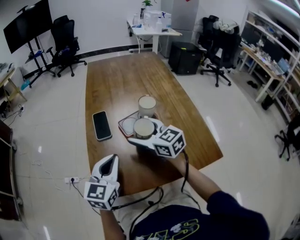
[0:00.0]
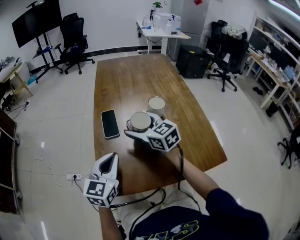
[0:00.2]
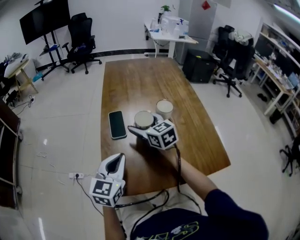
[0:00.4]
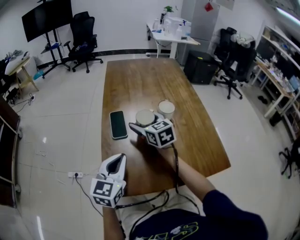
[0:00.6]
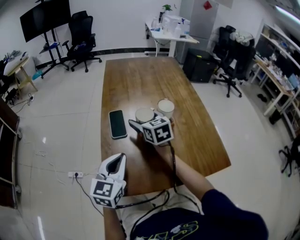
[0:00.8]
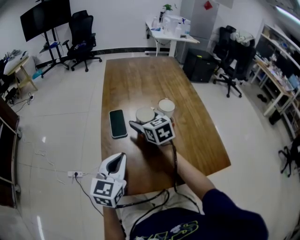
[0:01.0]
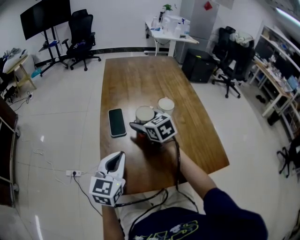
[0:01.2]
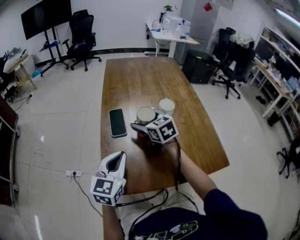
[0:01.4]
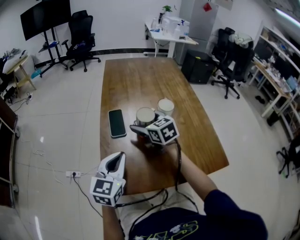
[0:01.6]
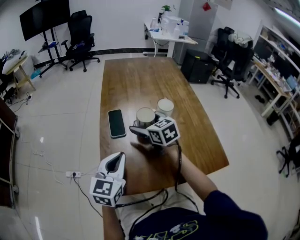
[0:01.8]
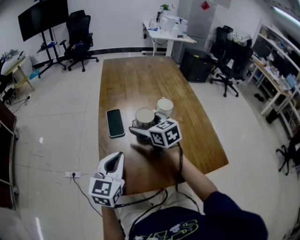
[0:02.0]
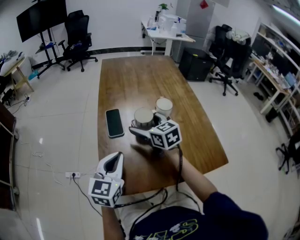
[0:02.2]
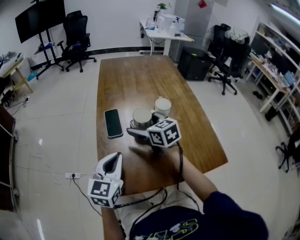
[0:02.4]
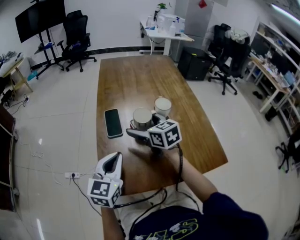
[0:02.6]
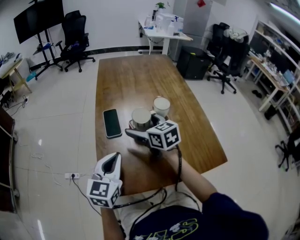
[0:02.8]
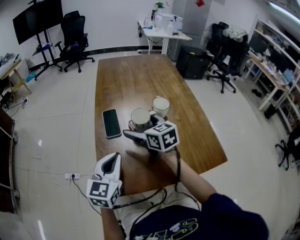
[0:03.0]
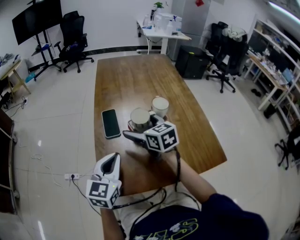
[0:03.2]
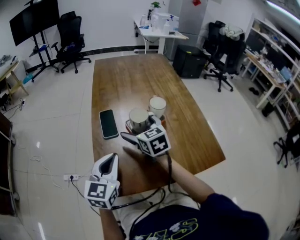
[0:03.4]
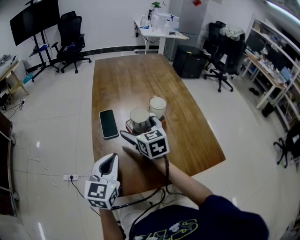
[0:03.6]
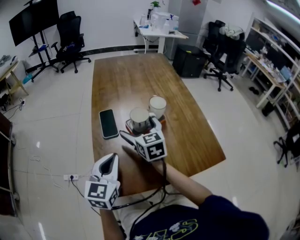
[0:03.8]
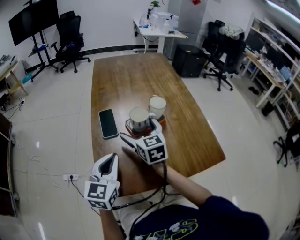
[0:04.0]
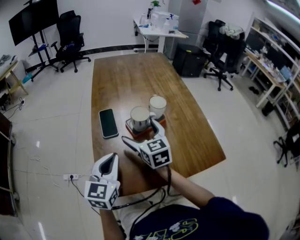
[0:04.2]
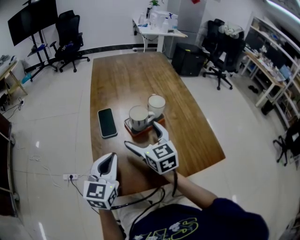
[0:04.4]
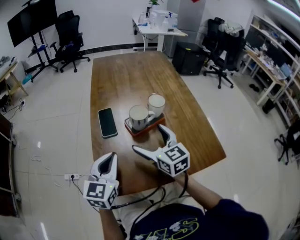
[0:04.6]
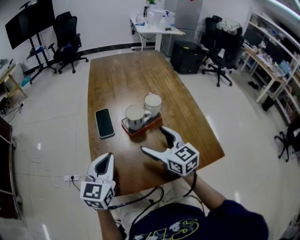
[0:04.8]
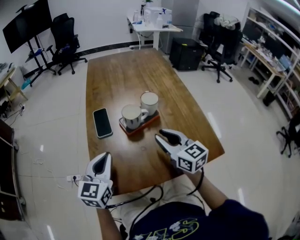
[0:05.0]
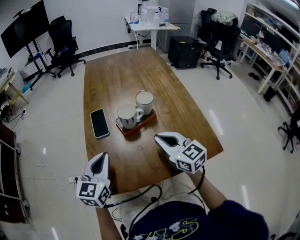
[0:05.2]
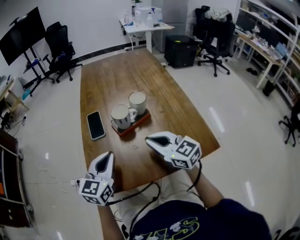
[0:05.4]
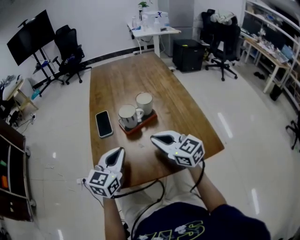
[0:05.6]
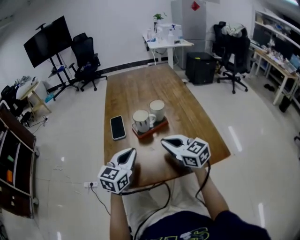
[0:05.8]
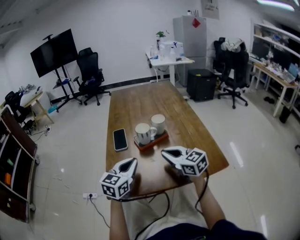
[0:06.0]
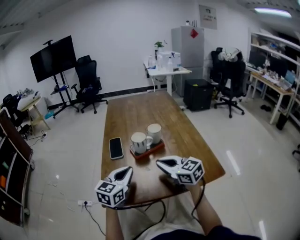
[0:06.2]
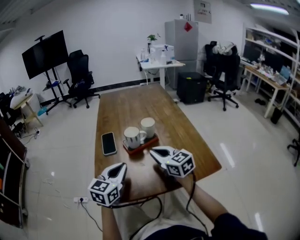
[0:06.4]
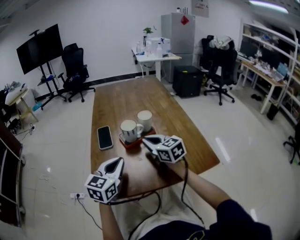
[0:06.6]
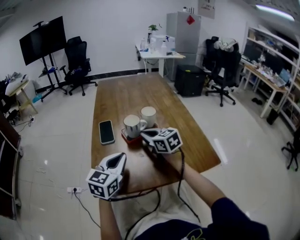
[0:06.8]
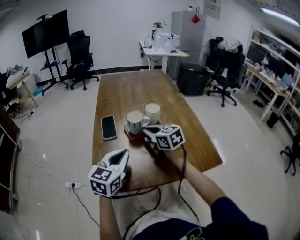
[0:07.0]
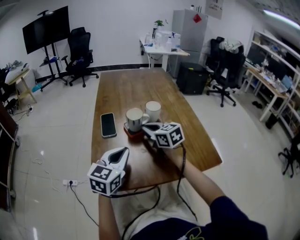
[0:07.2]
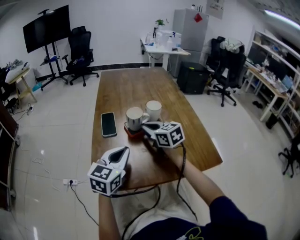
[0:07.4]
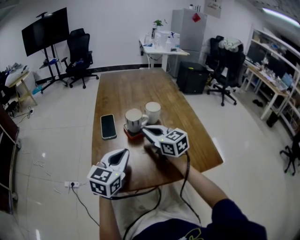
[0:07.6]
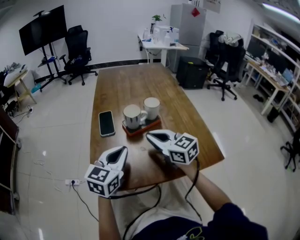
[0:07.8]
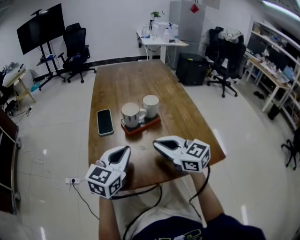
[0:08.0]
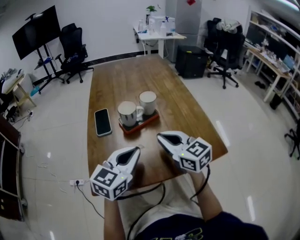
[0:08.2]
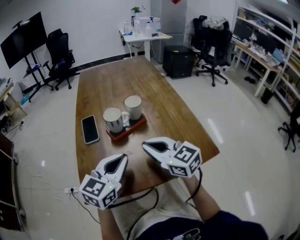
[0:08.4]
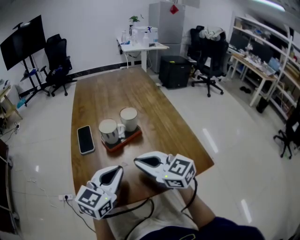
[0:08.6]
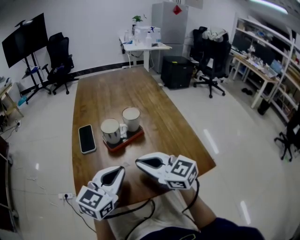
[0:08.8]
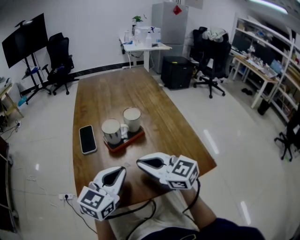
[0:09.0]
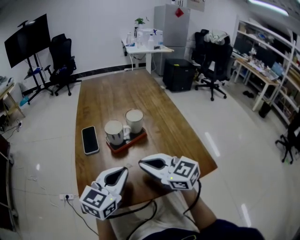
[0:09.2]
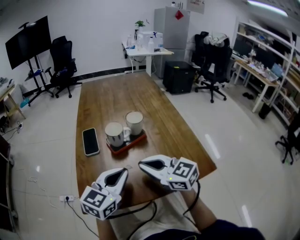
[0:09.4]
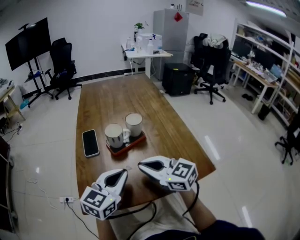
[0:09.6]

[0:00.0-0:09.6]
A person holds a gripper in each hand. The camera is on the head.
0.0 to 1.6 s: The right gripper moves forward, about 5 cm.
1.6 to 3.2 s: The grippers stay close to where they were, moving slightly.
3.2 to 4.8 s: The right gripper goes some 10 cm backward and to the right.
4.8 to 6.4 s: The right gripper closes up. Meanwhile the left gripper heads to the right, covering some 5 cm.
6.4 to 8.0 s: The right gripper moves backward, approximately 5 cm.
8.0 to 9.6 s: There are only small adjustments of the grippers.

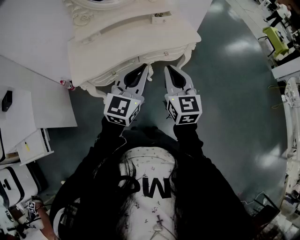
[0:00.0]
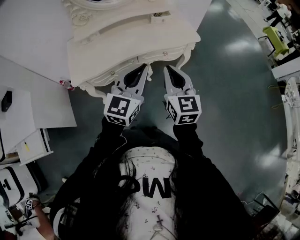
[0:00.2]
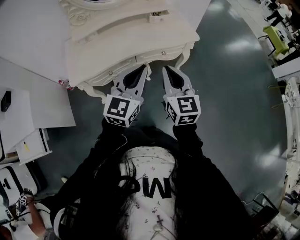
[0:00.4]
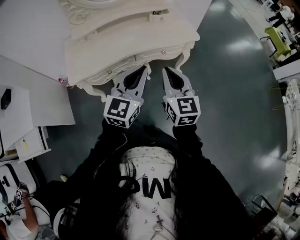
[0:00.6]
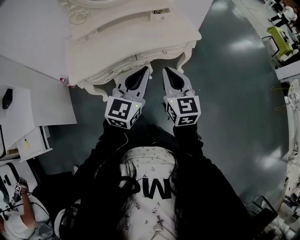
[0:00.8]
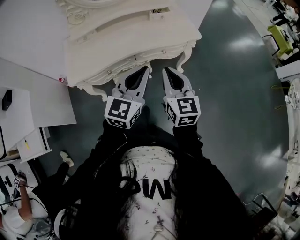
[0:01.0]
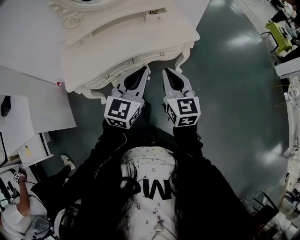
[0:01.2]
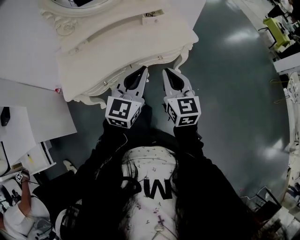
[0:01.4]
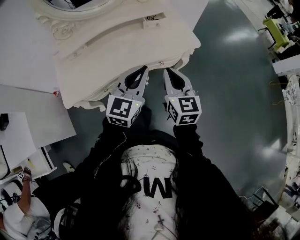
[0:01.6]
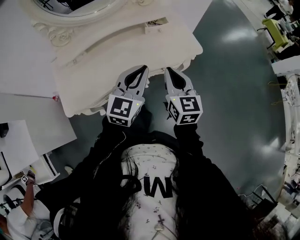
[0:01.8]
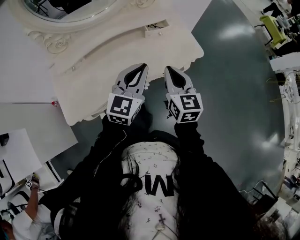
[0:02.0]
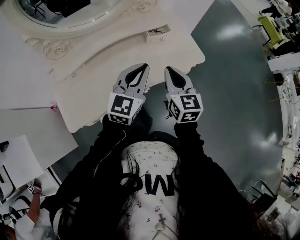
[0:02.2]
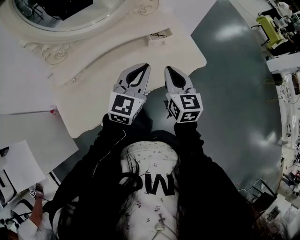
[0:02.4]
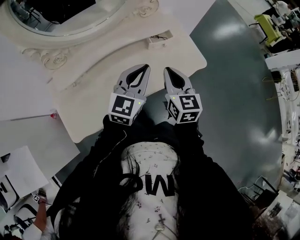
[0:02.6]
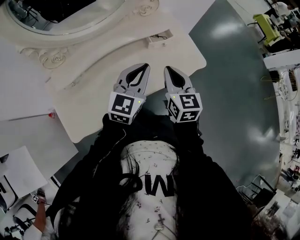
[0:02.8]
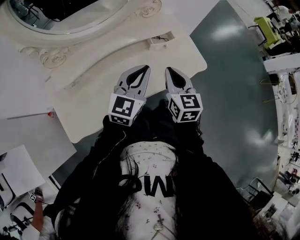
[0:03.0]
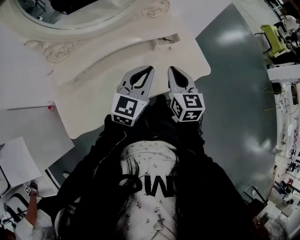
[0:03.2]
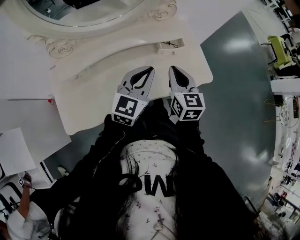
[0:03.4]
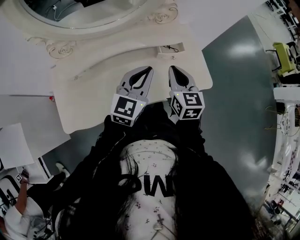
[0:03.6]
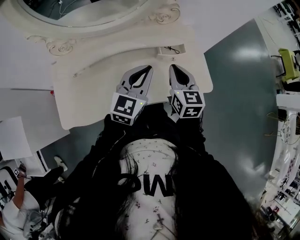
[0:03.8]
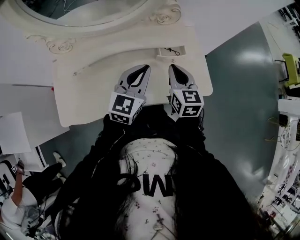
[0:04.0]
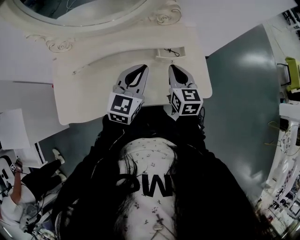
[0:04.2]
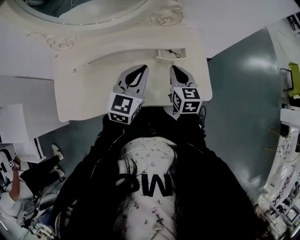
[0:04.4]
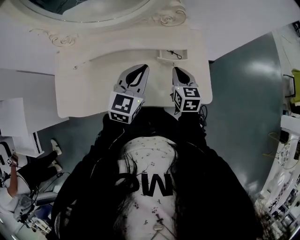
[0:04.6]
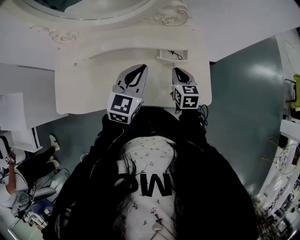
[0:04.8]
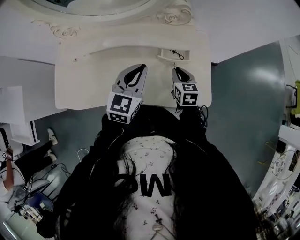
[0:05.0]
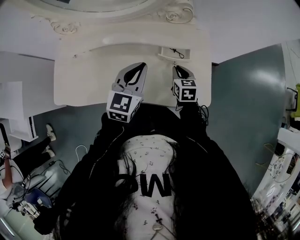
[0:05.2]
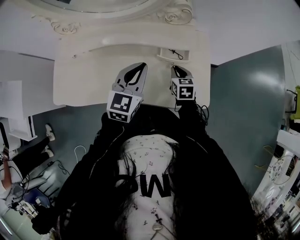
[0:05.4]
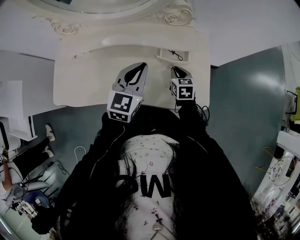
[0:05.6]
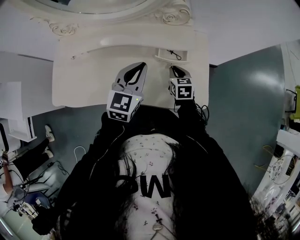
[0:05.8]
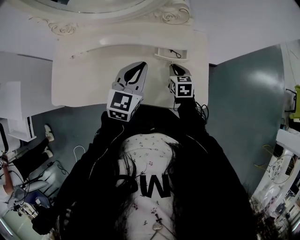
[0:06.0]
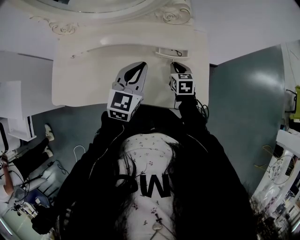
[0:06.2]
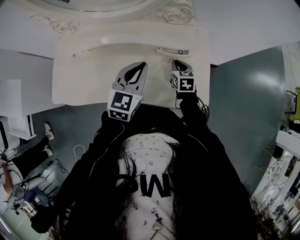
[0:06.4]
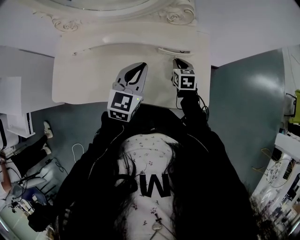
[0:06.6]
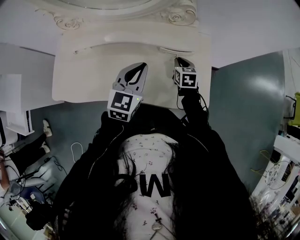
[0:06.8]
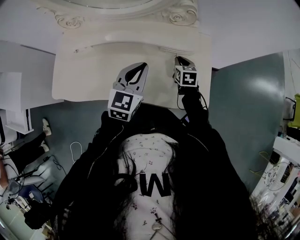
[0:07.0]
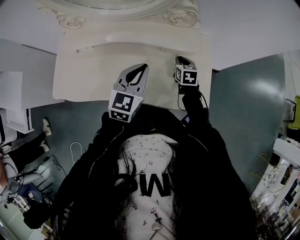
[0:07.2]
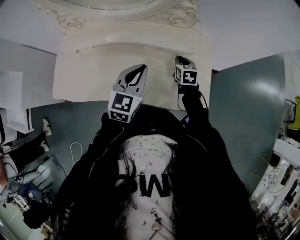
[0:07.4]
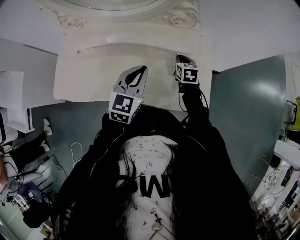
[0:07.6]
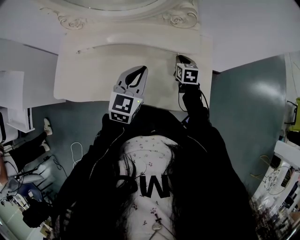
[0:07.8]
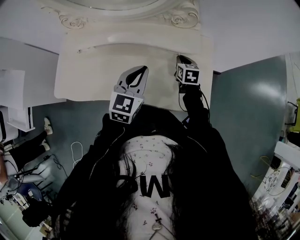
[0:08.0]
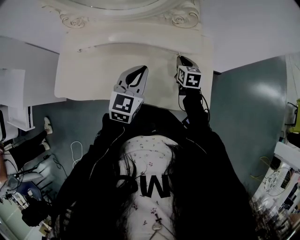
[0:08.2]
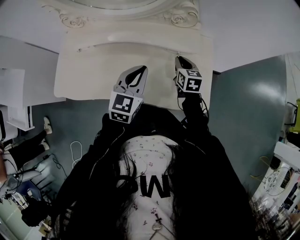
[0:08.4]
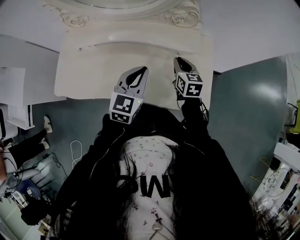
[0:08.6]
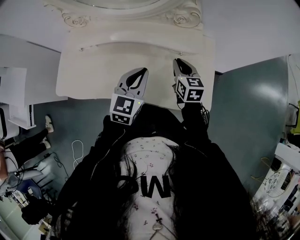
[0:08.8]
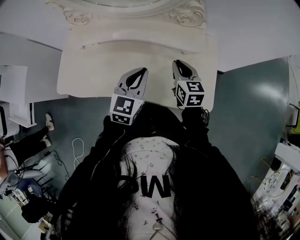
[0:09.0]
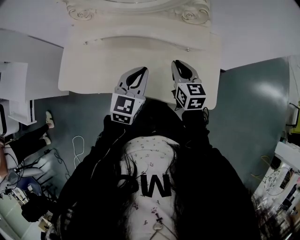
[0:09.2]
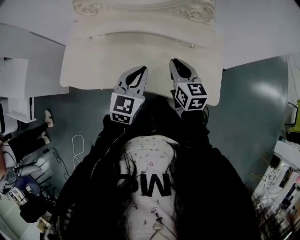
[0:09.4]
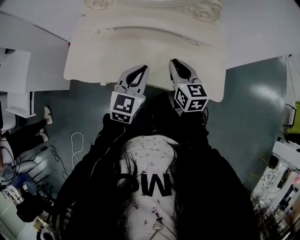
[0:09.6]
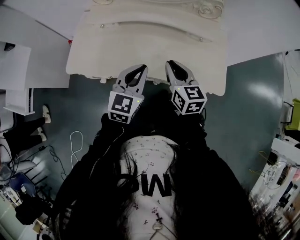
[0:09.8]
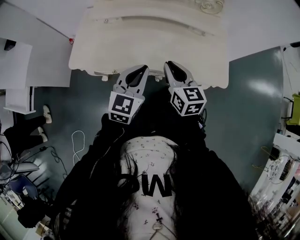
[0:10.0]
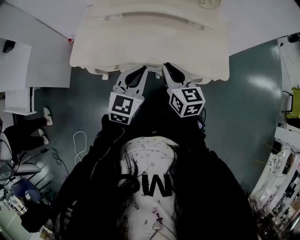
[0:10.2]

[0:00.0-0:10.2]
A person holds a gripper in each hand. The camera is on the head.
0.0 to 1.4 s: The left gripper travels forward by some 10 cm, while the right gripper goes approximately 10 cm forward and downward.
1.4 to 3.0 s: The grippers both shift forward and to the left by roughly 25 cm.
3.0 to 4.4 s: The left gripper is displaced forward by roughly 10 cm, and rotates some 20 degrees, while the right gripper is displaced forward and downward by approximately 15 cm, and rotates some 20 degrees.
4.4 to 5.8 s: The right gripper heads downward, covering some 15 cm.
5.8 to 7.2 s: The right gripper moves forward, roughly 5 cm.
7.2 to 8.8 s: The right gripper travels upward by about 10 cm.
8.8 to 10.2 s: Both grippers travel together backward and to the left, some 25 cm.

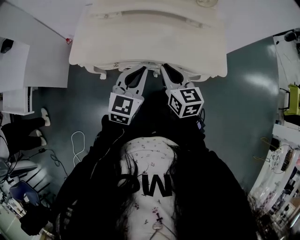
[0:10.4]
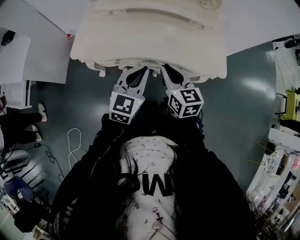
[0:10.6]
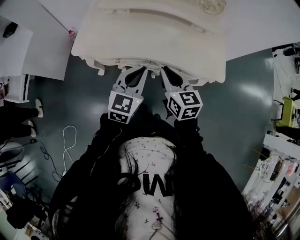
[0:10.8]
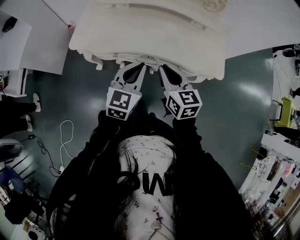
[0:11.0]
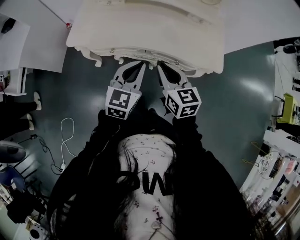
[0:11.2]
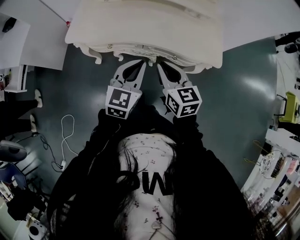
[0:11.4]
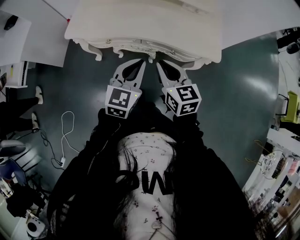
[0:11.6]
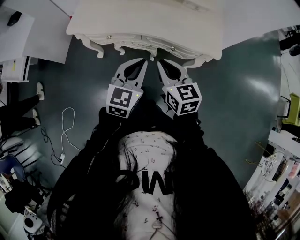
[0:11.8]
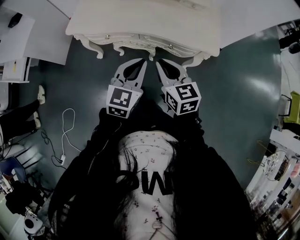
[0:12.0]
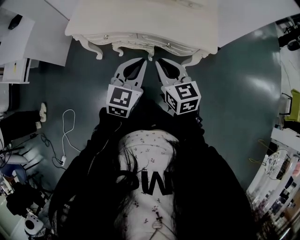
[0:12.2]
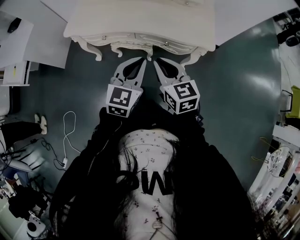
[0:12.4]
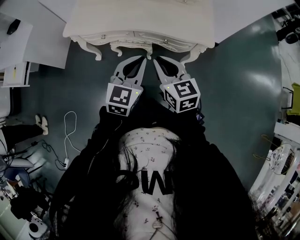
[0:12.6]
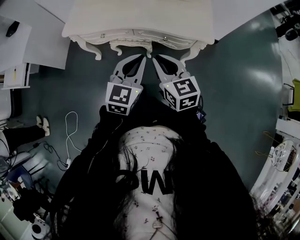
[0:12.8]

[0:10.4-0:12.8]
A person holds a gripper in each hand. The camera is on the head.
10.4 to 11.6 s: The grippers both shift backward by roughly 10 cm.
11.6 to 12.8 s: Both grippers travel together backward, approximately 5 cm.

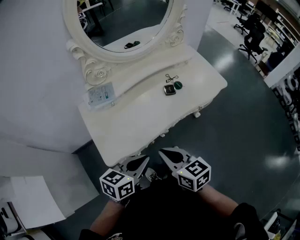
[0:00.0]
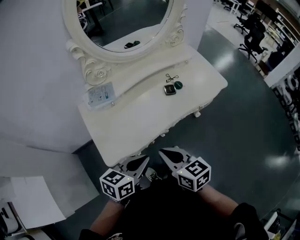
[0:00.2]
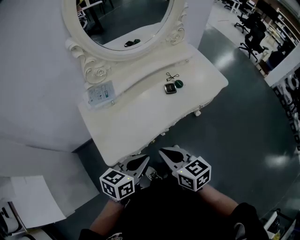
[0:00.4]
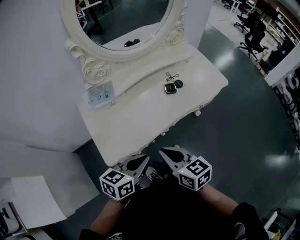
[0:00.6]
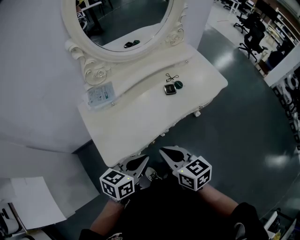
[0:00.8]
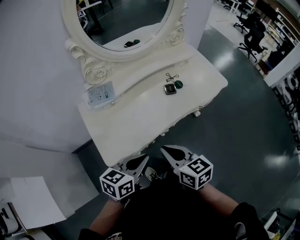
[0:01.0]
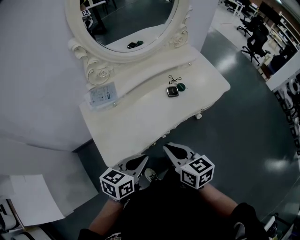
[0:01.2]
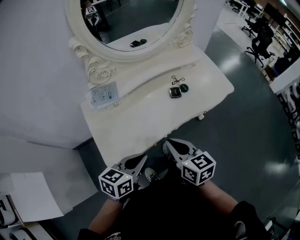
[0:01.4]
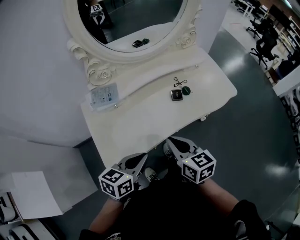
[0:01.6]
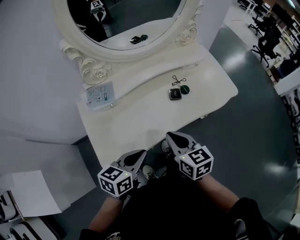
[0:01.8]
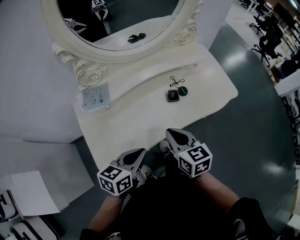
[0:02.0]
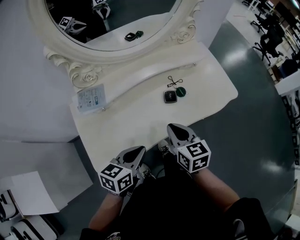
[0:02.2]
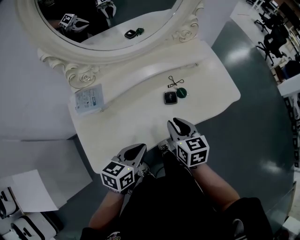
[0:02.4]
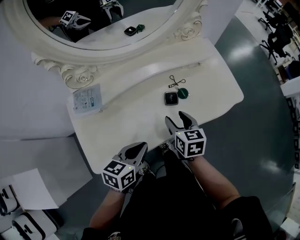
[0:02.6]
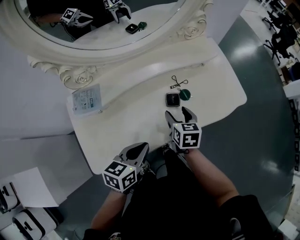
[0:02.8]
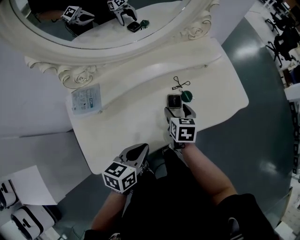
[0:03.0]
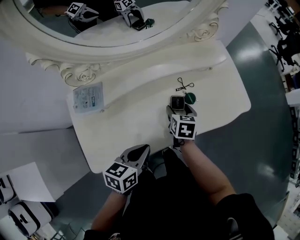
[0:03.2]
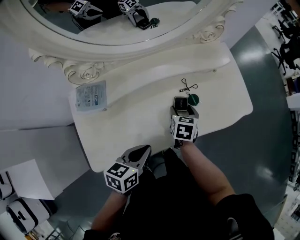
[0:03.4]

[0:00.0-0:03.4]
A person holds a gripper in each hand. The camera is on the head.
0.0 to 1.6 s: The left gripper shifts about 5 cm forward. The right gripper moves forward, roughly 10 cm.
1.6 to 3.4 s: The left gripper is displaced forward and downward by approximately 15 cm, while the right gripper goes roughly 35 cm forward and downward, swivels roughly 30 degrees, and opens.
